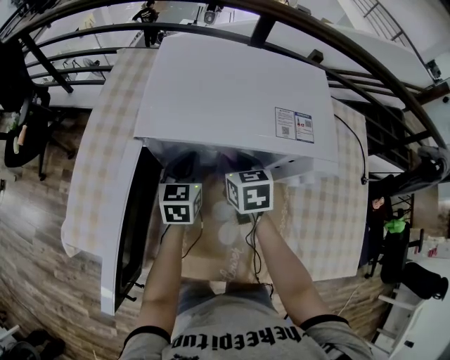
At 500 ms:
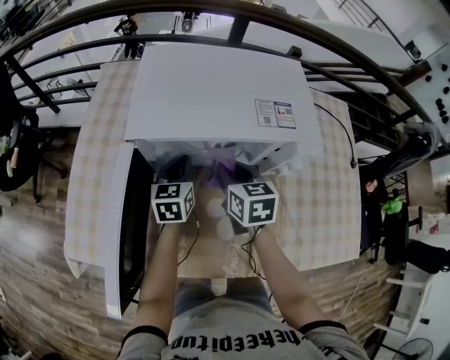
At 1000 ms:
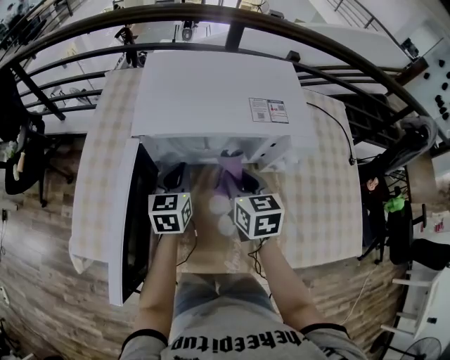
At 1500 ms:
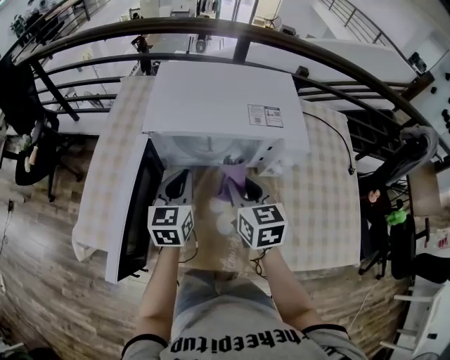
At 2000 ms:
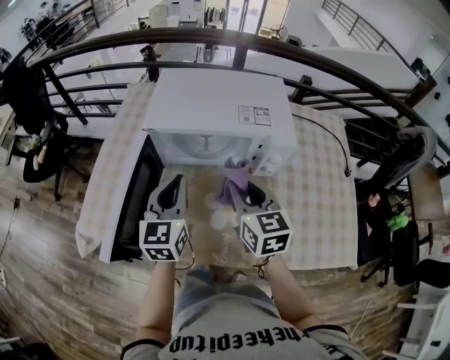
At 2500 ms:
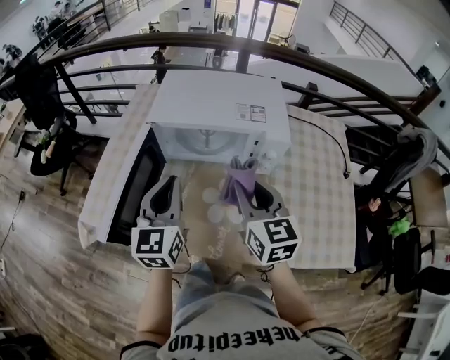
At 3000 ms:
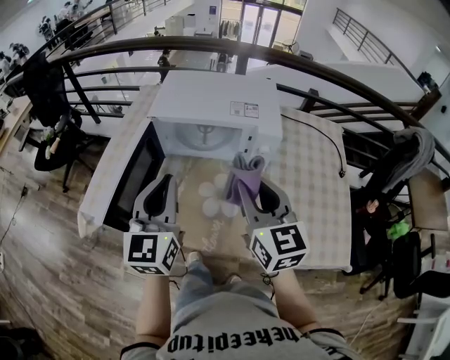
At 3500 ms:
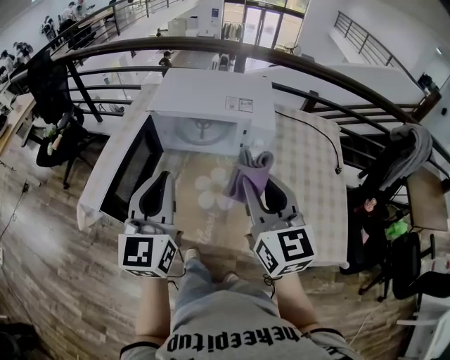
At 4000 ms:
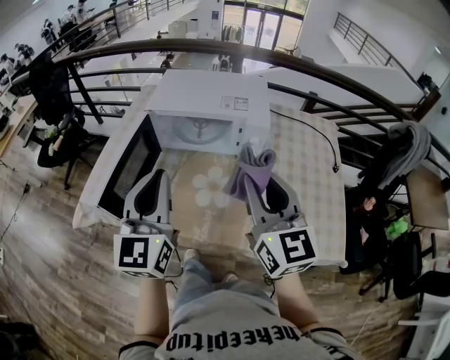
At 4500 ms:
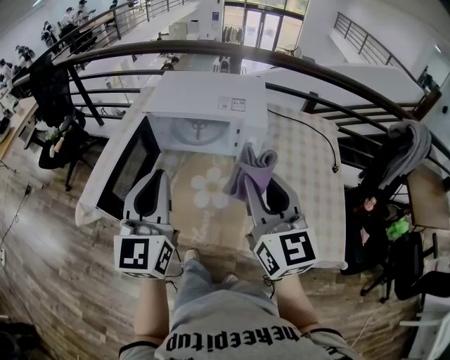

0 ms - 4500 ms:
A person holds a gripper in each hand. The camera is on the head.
0 ms - 2000 ms: The right gripper travels backward and upward by approximately 20 cm, and swivels some 20 degrees. Meanwhile the left gripper goes roughly 25 cm upward and backward.
2000 ms - 4500 ms: The left gripper goes about 25 cm backward and upward. The right gripper moves backward, upward and to the right, approximately 25 cm, and turns by about 20 degrees.

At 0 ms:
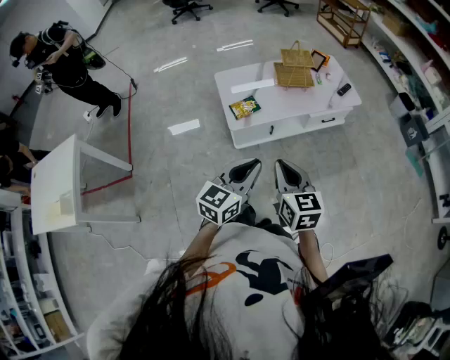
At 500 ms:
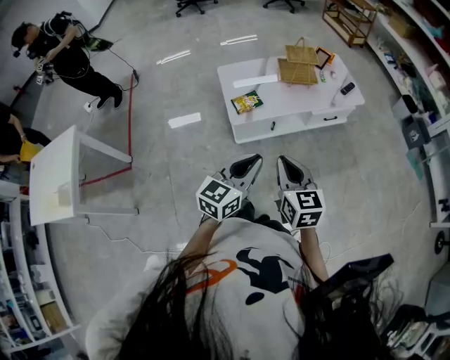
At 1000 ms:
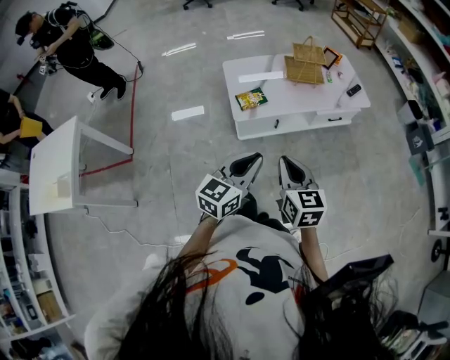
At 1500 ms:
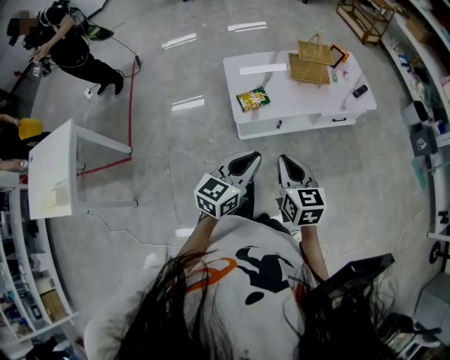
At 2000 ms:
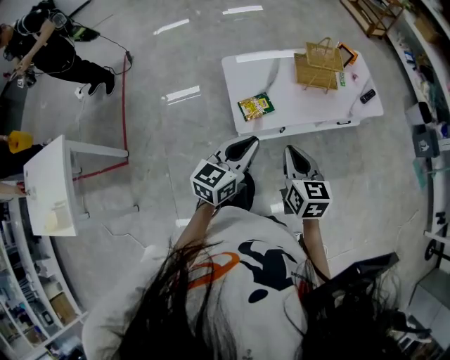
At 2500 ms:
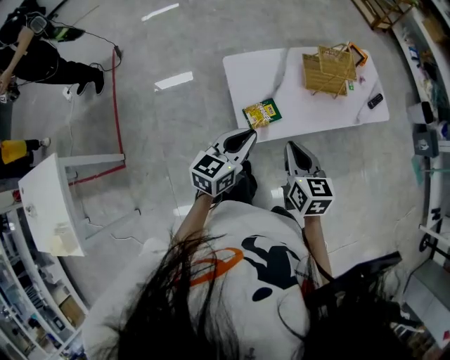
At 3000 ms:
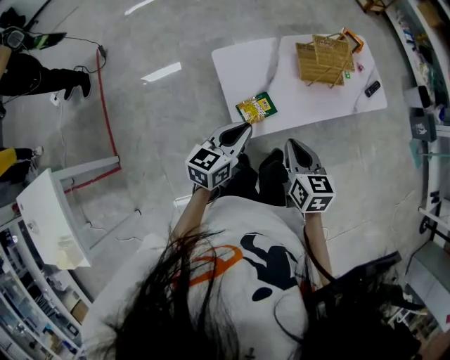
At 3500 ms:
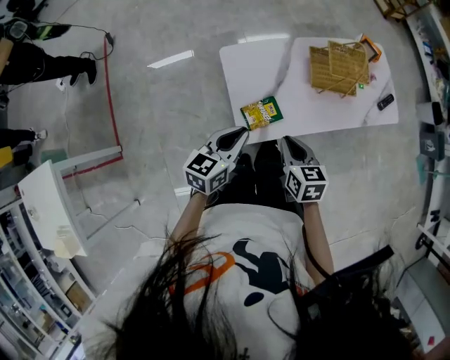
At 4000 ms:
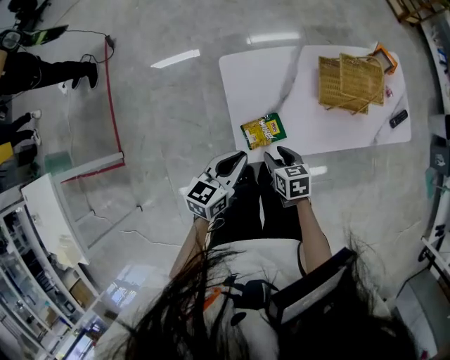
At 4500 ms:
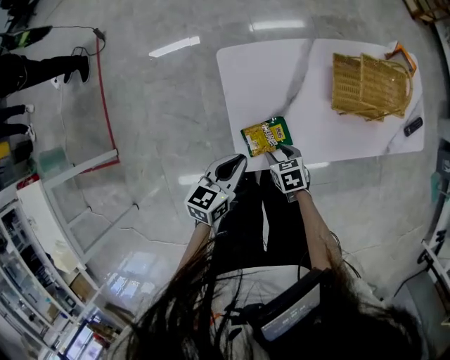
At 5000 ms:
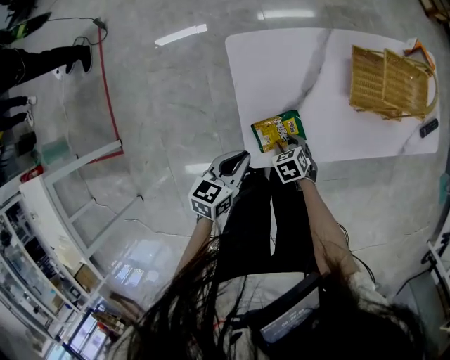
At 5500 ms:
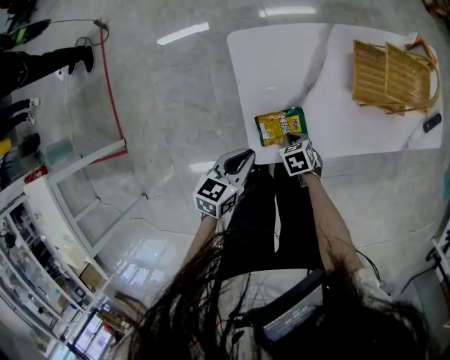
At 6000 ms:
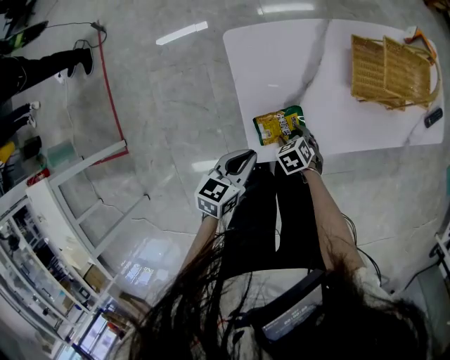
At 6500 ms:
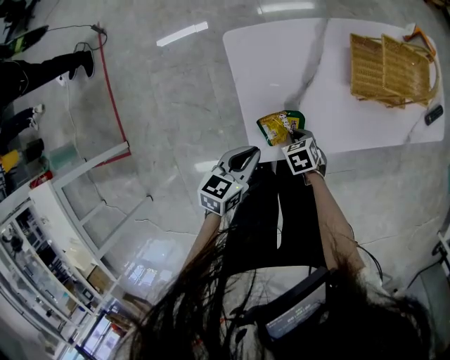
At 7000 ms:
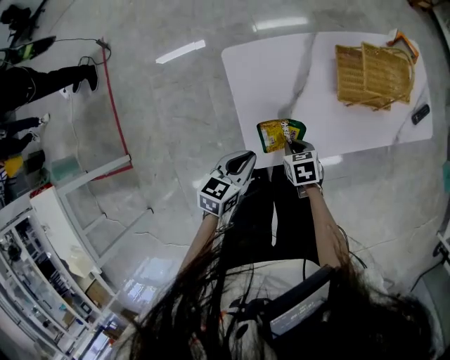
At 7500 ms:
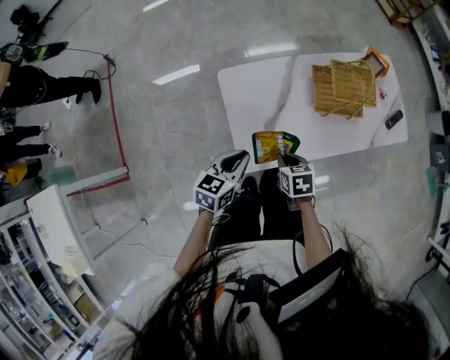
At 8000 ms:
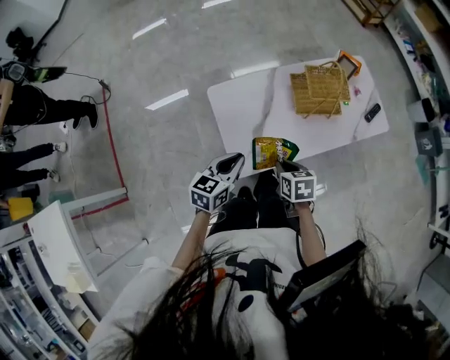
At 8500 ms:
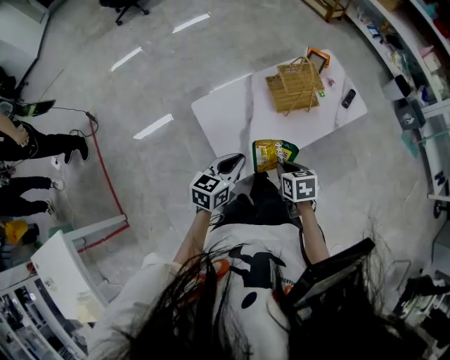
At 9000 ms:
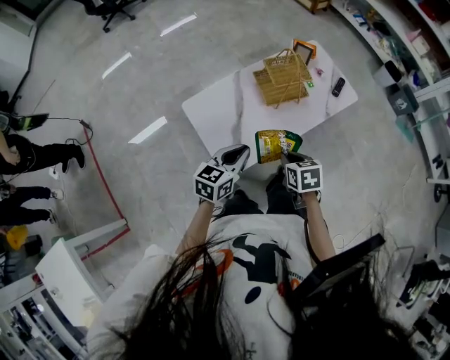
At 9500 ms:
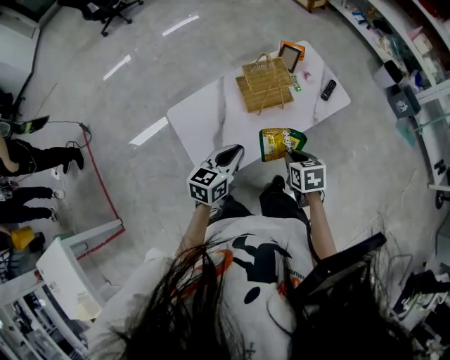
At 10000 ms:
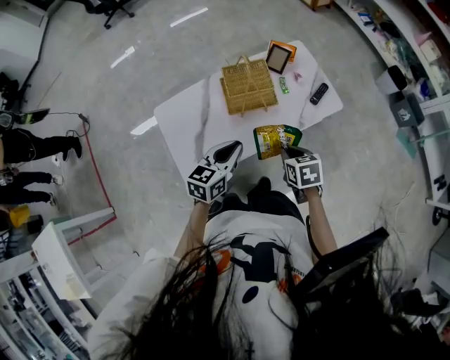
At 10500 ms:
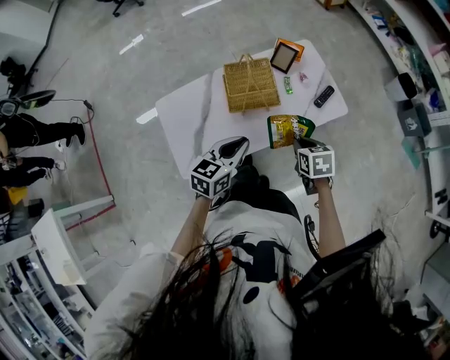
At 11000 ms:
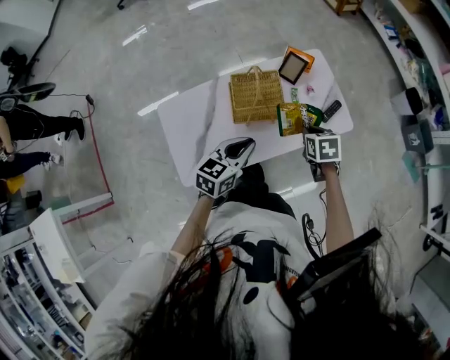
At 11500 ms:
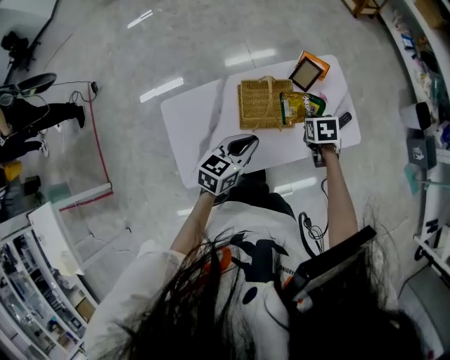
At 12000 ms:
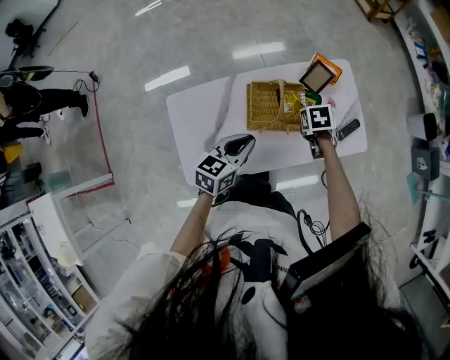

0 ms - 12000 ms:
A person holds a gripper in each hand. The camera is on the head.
0 ms - 2000 ms: The left gripper is displaced forward and to the left by some 25 cm. Meanwhile the right gripper moves forward, some 20 cm.
2000 ms - 4000 ms: The left gripper shifts some 30 cm forward, downward and to the left. The right gripper is displaced downward and forward by approximately 35 cm, changes its angle by some 30 degrees, and opens up.
4000 ms - 6000 ms: Both grippers move downward, about 15 cm. The right gripper turns by approximately 30 degrees, and closes and opens again.
6000 ms - 8000 ms: The left gripper is displaced upward by roughly 20 cm. The right gripper moves upward, about 30 cm, rotates some 40 degrees, and closes its fingers.
8000 ms - 10000 ms: The grippers both shift to the right by some 30 cm.
10000 ms - 12000 ms: The right gripper travels forward by approximately 30 cm, while the left gripper shifts some 15 cm forward.

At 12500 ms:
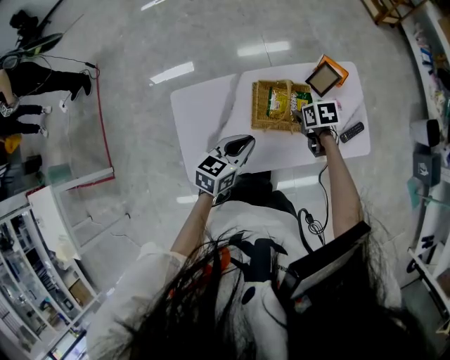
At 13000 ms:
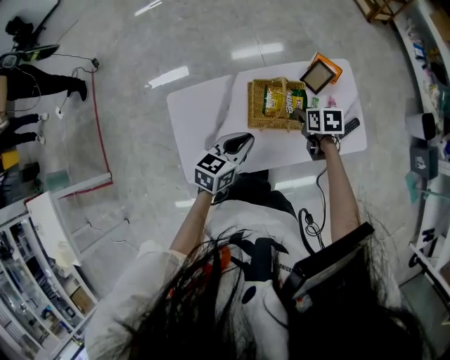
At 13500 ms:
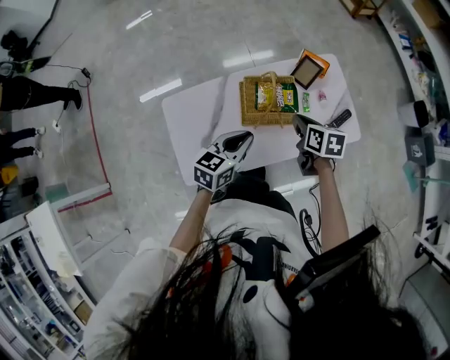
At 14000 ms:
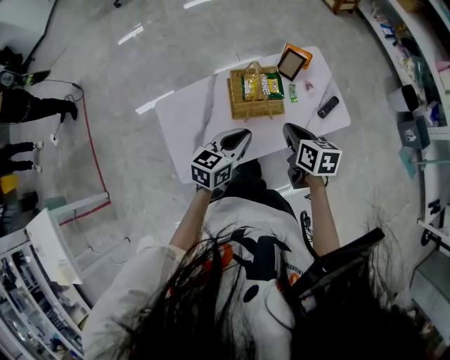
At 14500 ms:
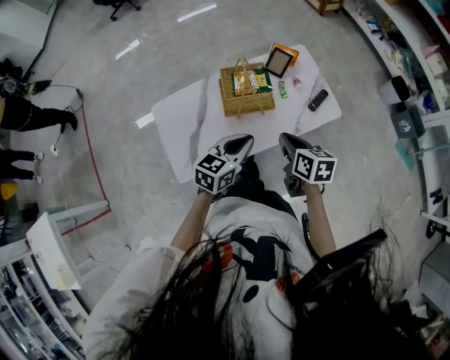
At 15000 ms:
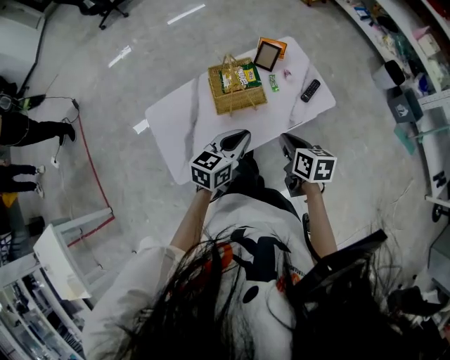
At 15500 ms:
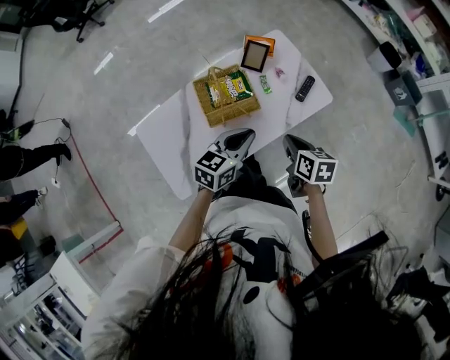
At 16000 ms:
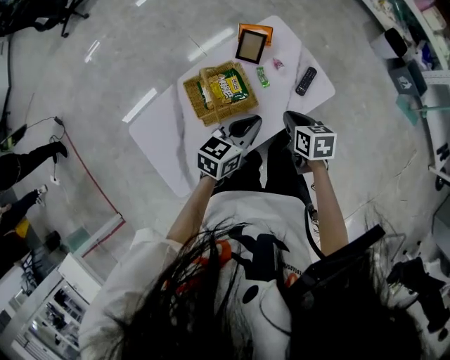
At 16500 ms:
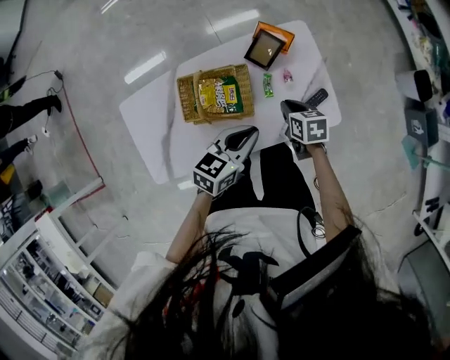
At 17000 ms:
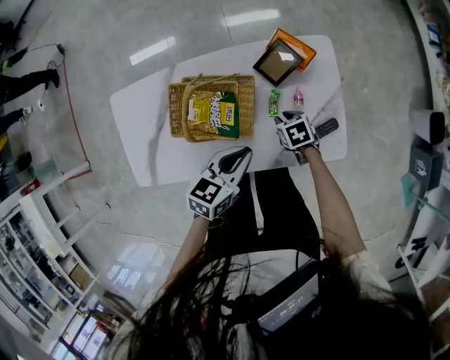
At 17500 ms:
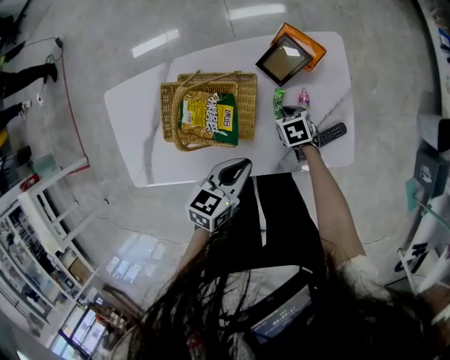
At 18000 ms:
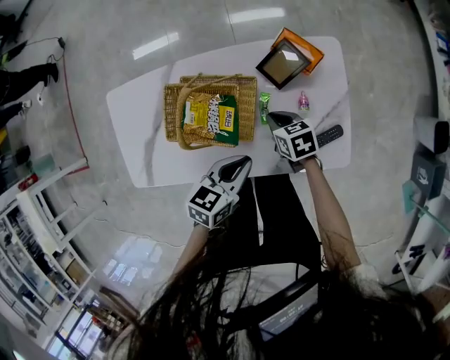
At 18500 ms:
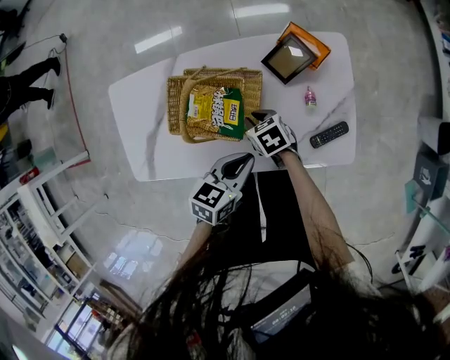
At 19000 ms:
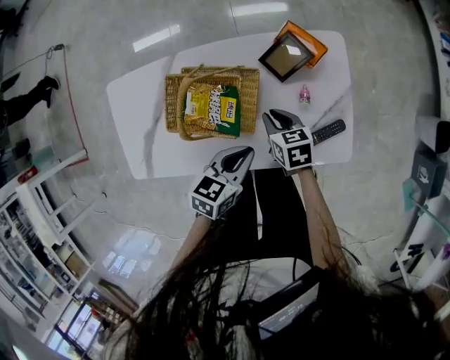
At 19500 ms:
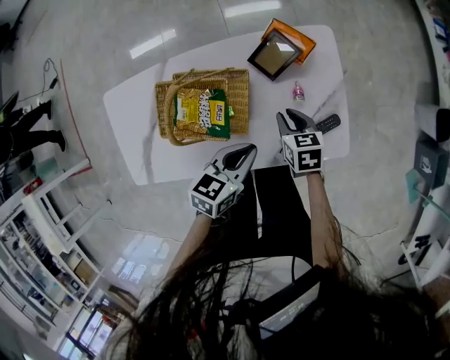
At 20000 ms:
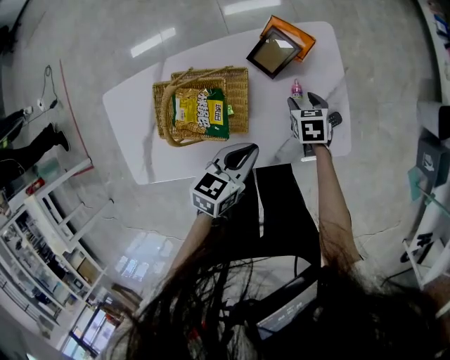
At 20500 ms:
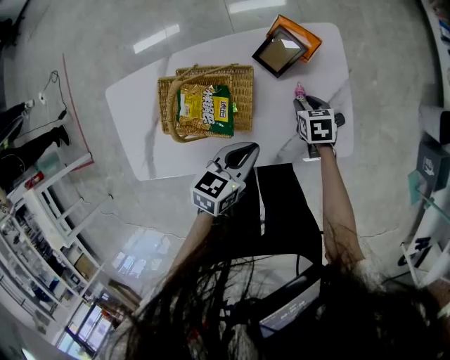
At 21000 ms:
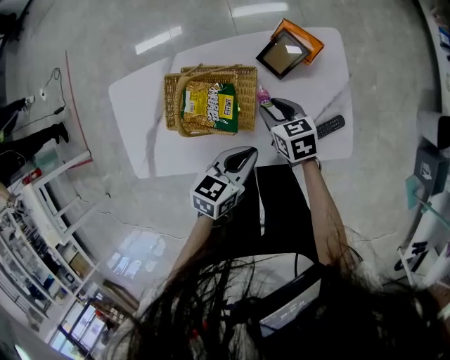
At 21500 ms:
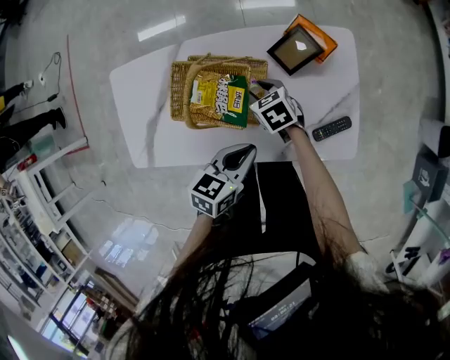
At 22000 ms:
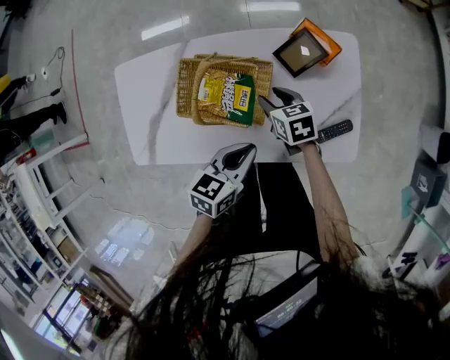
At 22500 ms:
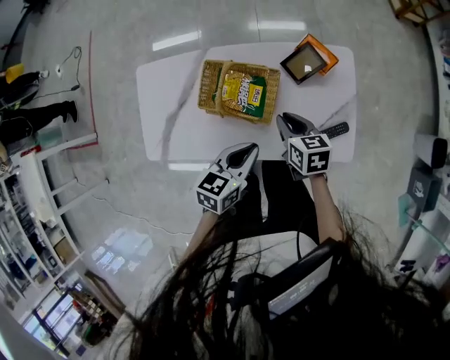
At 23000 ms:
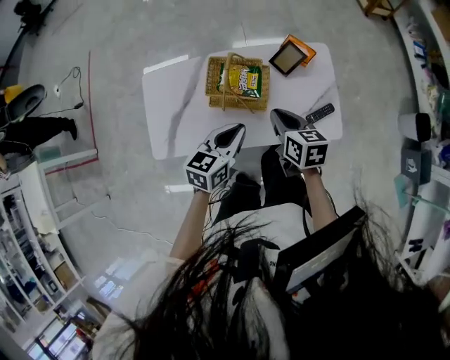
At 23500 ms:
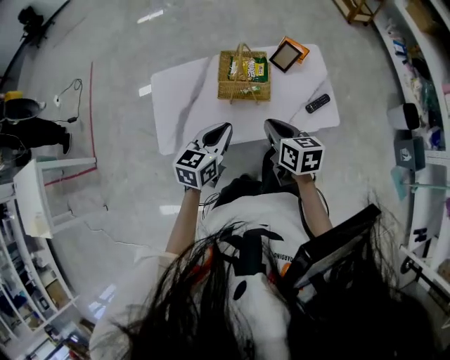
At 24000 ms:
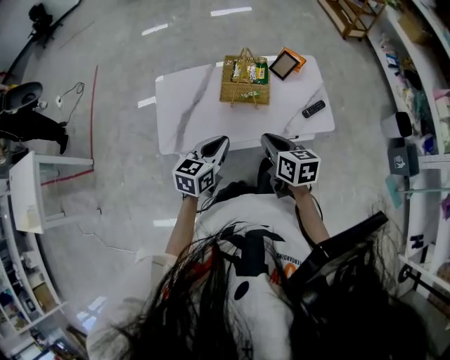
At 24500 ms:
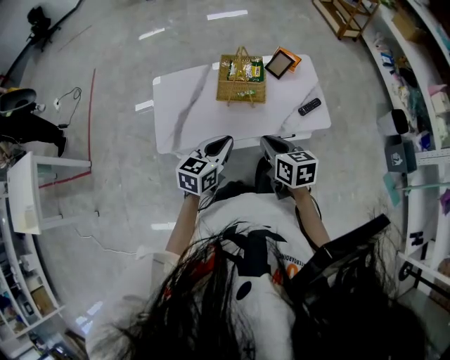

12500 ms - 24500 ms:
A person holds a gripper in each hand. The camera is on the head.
12500 ms - 14500 ms: The left gripper goes roughly 15 cm backward, to the right and upward. Meanwhile the right gripper goes roughly 30 cm backward and upward, turns by approximately 40 degrees, and closes its fingers.
14500 ms - 16500 ms: The right gripper moves forward and downward, approximately 30 cm, and turns by about 20 degrees. The left gripper is displaced forward, to the right and downward by approximately 25 cm.
16500 ms - 18500 ms: The left gripper travels downward by approximately 10 cm; the right gripper shifts about 20 cm to the left and downward, and swivels about 30 degrees.
18500 ms - 20500 ms: The right gripper moves about 20 cm, and rotates approximately 30 degrees.
20500 ms - 22500 ms: The left gripper moves upward and to the left, about 10 cm. Meanwhile the right gripper goes roughly 20 cm upward and to the left, and swivels some 20 degrees.
22500 ms - 24500 ms: The left gripper heads backward, upward and to the left, covering some 25 cm; the right gripper is displaced backward and upward by about 35 cm.
